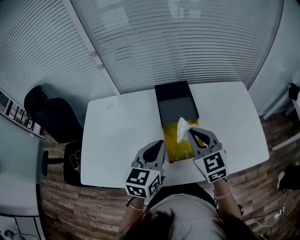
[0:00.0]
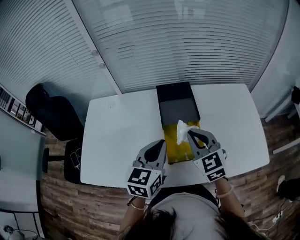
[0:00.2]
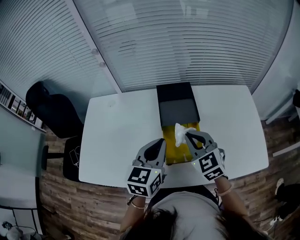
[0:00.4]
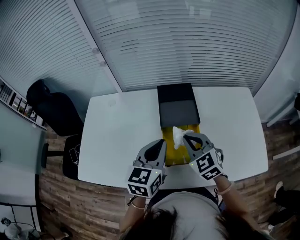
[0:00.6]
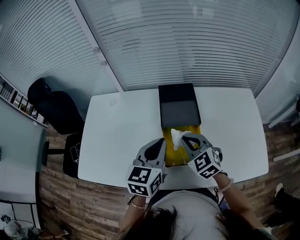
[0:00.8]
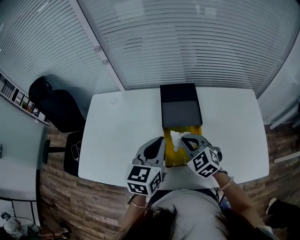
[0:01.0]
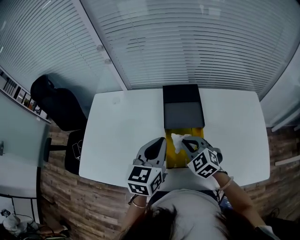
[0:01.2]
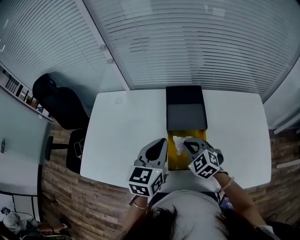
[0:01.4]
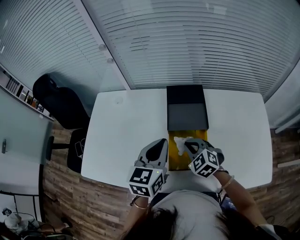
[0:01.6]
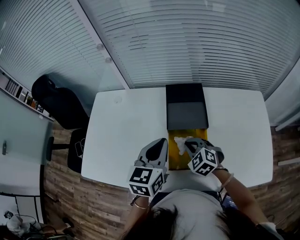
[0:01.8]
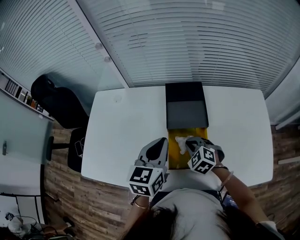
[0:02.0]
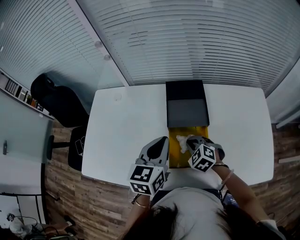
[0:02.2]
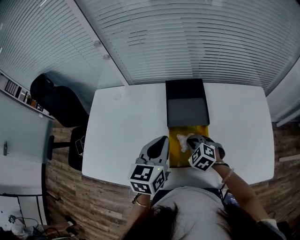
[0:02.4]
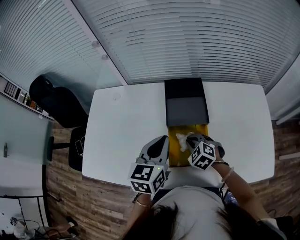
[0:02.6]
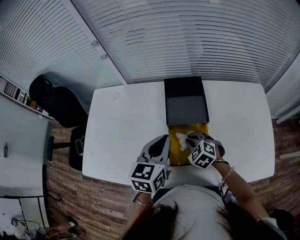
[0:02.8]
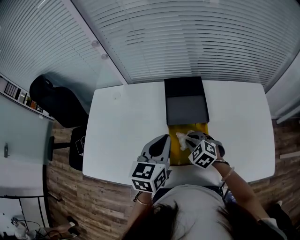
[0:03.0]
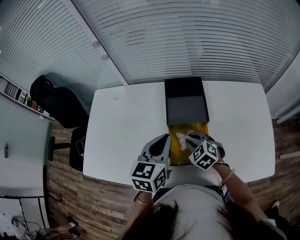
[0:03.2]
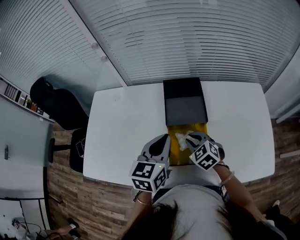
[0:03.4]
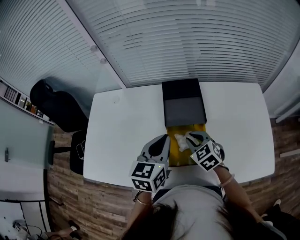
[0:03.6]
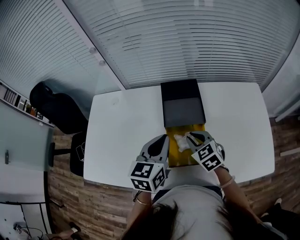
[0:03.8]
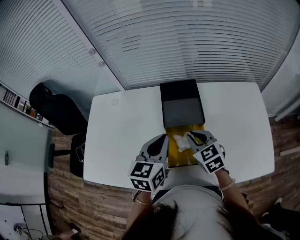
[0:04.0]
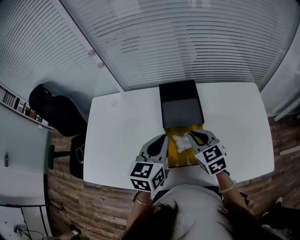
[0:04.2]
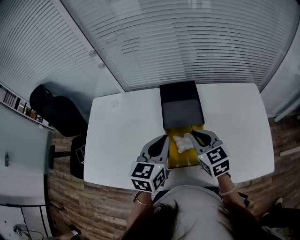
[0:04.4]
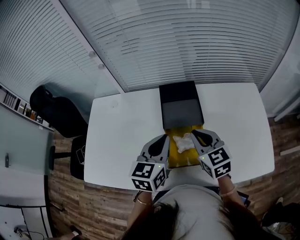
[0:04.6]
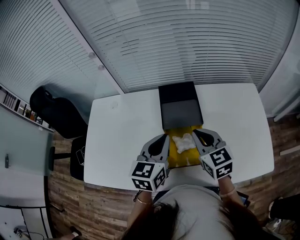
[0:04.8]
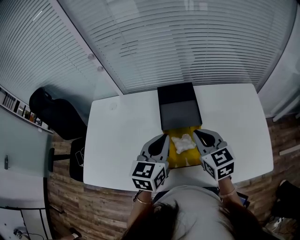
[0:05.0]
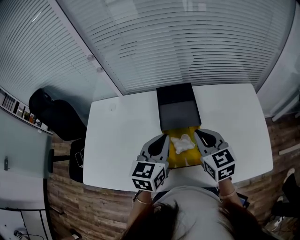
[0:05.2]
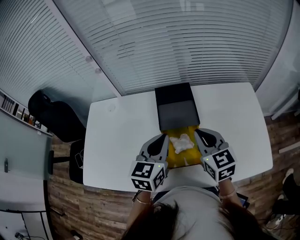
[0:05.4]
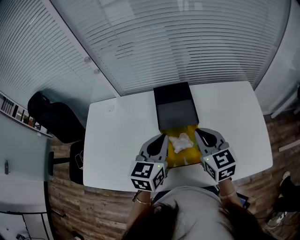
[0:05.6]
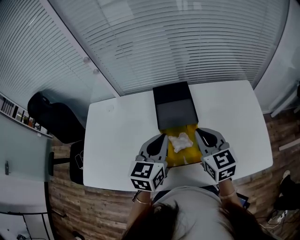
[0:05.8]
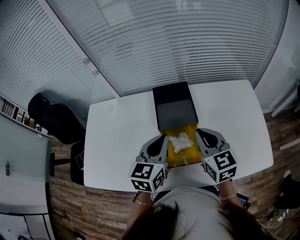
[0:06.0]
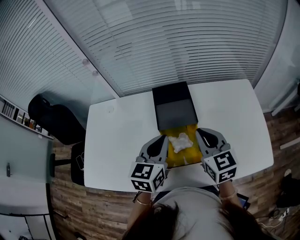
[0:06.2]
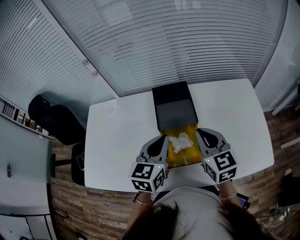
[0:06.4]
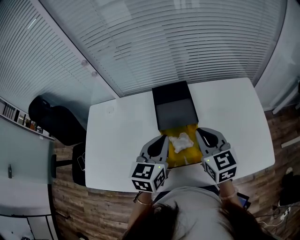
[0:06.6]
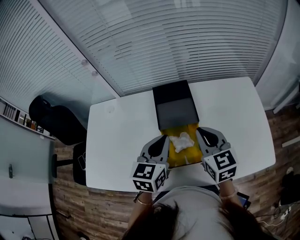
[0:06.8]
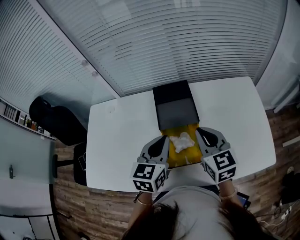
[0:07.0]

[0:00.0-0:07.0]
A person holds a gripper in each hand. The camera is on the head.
0:00.0 to 0:01.4: The left gripper shifts about 5 cm forward, while the right gripper is displaced downward by approximately 15 cm, and rotates roughly 30 degrees.
0:01.4 to 0:02.8: The right gripper shifts some 5 cm downward.
0:02.8 to 0:04.2: The right gripper is displaced upward by roughly 10 cm, and rotates some 40 degrees.
0:04.2 to 0:05.6: The right gripper heads upward, covering about 5 cm.
0:05.6 to 0:07.0: Both grippers stay put.

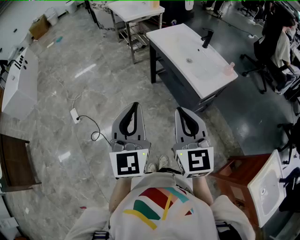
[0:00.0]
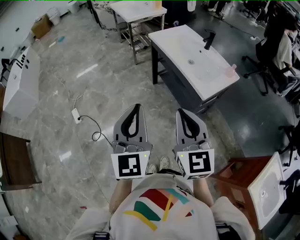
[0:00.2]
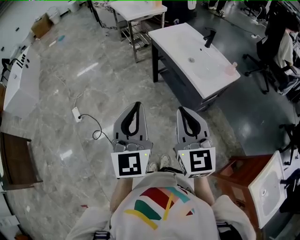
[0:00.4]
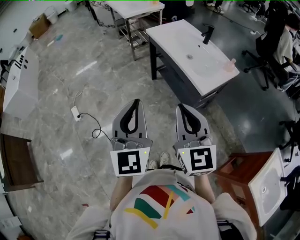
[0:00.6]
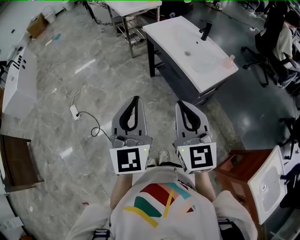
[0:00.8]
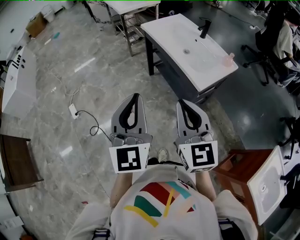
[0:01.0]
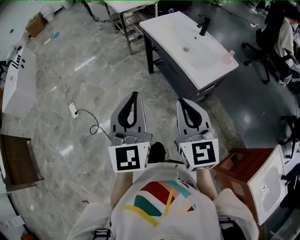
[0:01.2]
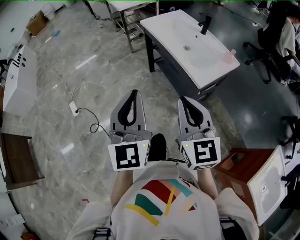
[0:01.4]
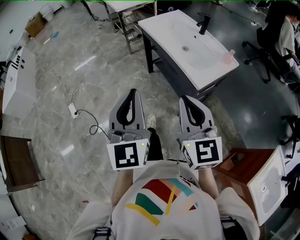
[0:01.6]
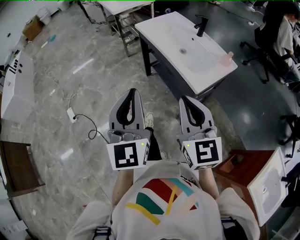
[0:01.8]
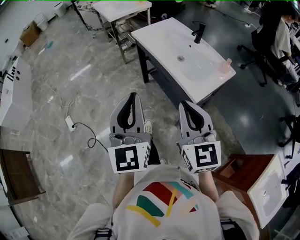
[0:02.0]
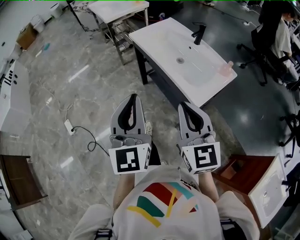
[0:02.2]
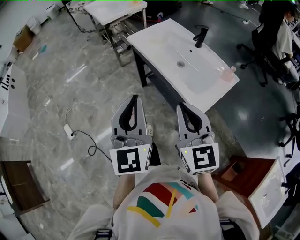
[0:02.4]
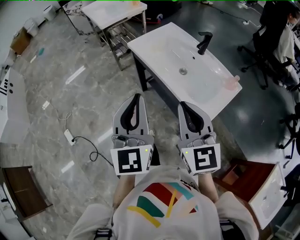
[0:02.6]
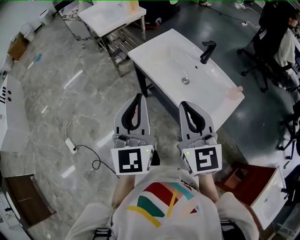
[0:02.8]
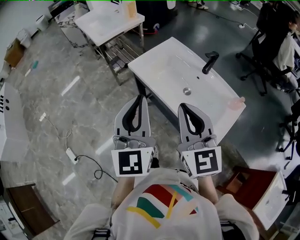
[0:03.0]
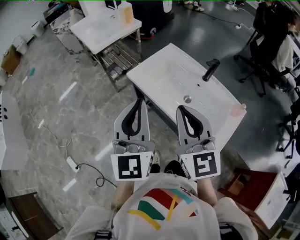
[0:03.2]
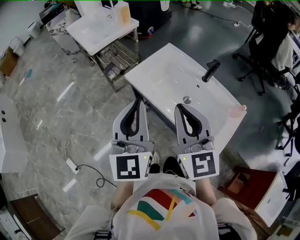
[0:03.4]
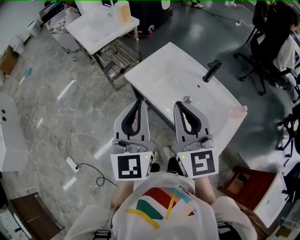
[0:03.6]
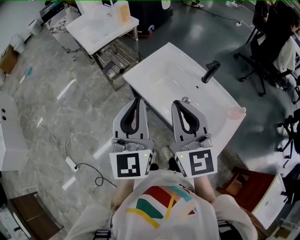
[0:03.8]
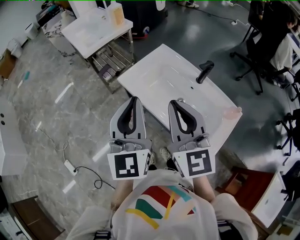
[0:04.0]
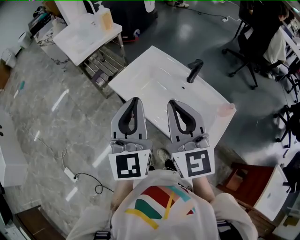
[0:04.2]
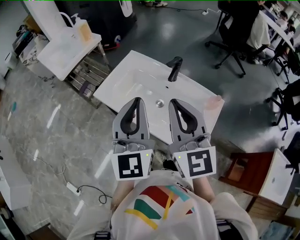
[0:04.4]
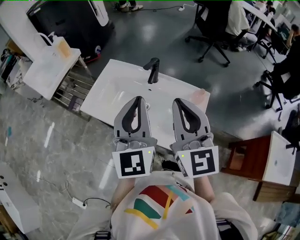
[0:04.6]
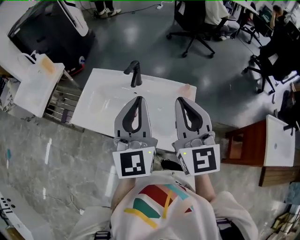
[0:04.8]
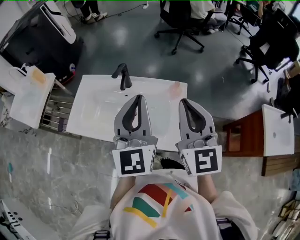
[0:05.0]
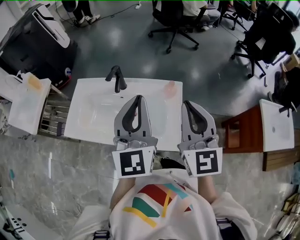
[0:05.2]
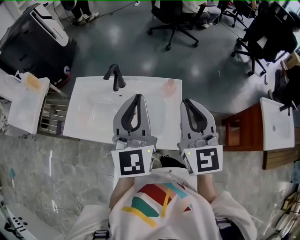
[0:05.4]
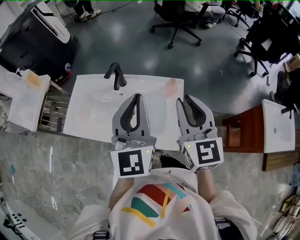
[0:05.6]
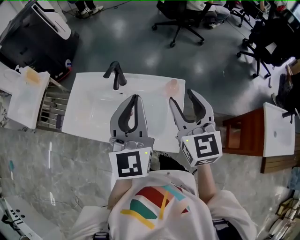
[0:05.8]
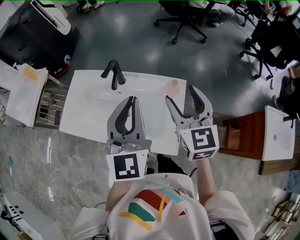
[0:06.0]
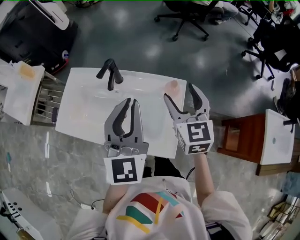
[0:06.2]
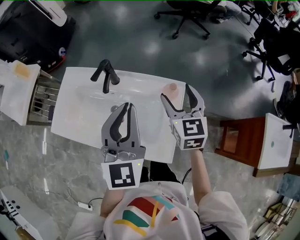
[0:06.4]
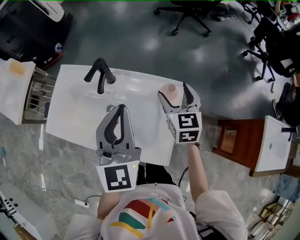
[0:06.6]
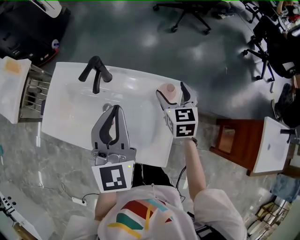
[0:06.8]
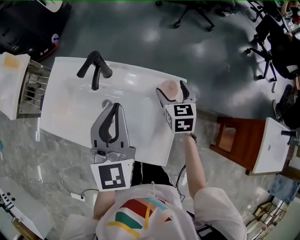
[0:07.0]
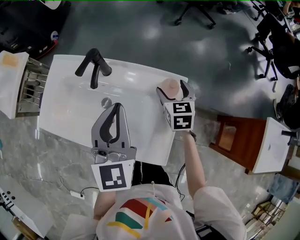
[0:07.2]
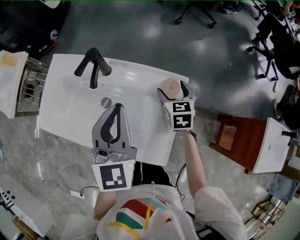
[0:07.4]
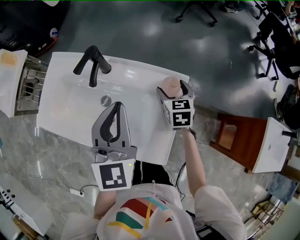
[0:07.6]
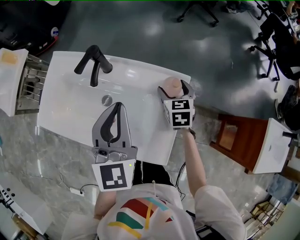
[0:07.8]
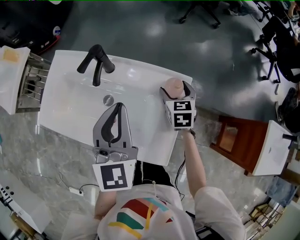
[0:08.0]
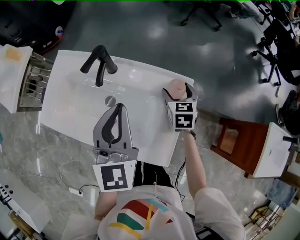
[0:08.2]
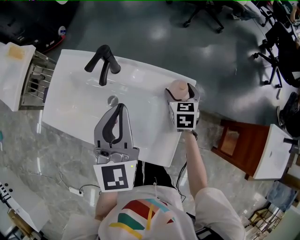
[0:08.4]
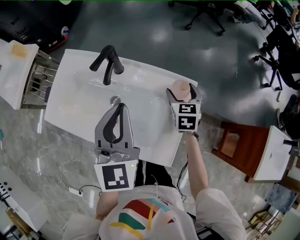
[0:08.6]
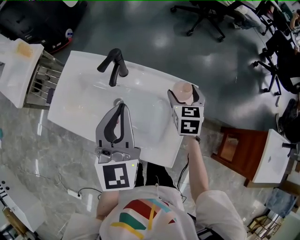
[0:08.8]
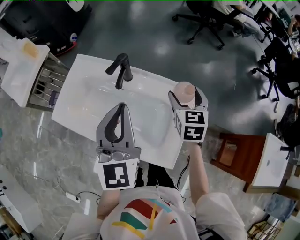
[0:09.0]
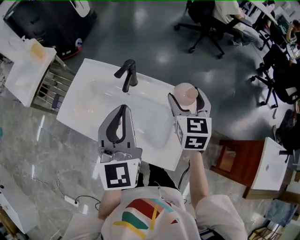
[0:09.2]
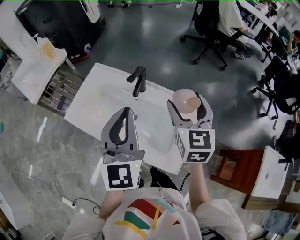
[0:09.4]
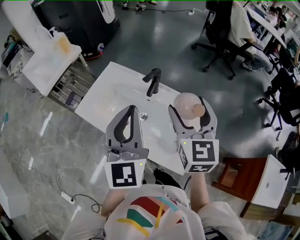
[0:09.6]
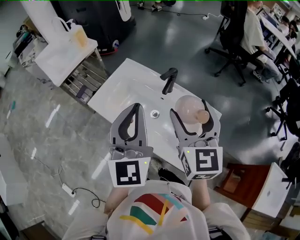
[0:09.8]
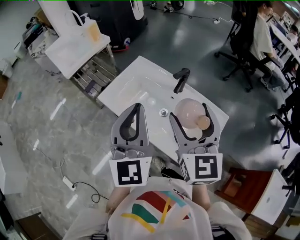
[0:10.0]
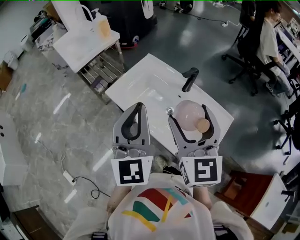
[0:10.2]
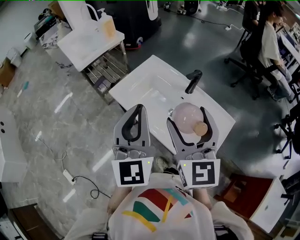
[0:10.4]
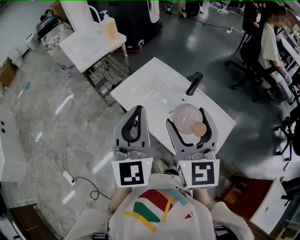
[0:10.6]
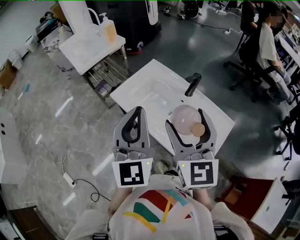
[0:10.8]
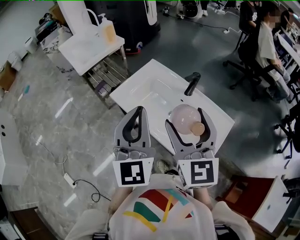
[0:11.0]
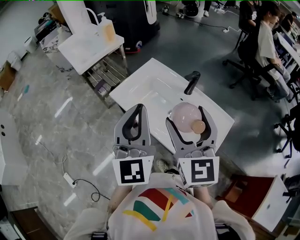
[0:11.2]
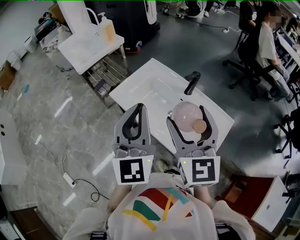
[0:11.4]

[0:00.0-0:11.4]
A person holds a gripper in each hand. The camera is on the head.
0:00.0 to 0:01.4: The two grippers go some 5 cm to the right.
0:01.4 to 0:02.8: The grippers both shift forward by about 30 cm.
0:02.8 to 0:04.2: Both grippers move forward, approximately 15 cm.
0:04.2 to 0:05.6: The right gripper shifts by some 30 cm, and swivels approximately 40 degrees. Meanwhile the left gripper changes place by approximately 25 cm, and swivels roughly 30 degrees.
0:05.6 to 0:07.2: The right gripper moves downward and forward, about 35 cm, tips its fingers downward by roughly 30 degrees, and opens its fingers; the left gripper moves downward and forward, some 15 cm.
0:07.2 to 0:08.6: The grippers move only a little.
0:08.6 to 0:10.0: The right gripper is displaced upward, to the left and backward by about 40 cm, and tips its fingers upward by about 30 degrees. The left gripper travels to the left, upward and backward by some 25 cm, and swivels about 20 degrees.
0:10.0 to 0:11.4: The left gripper ends up some 5 cm from where it was, while the right gripper shifts some 5 cm to the left.

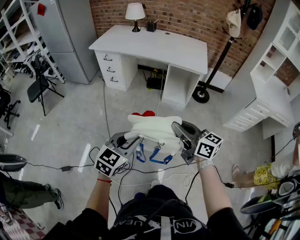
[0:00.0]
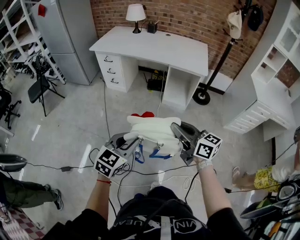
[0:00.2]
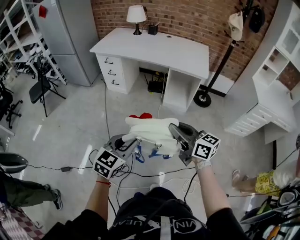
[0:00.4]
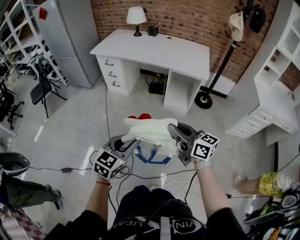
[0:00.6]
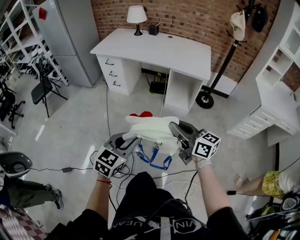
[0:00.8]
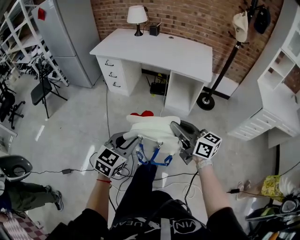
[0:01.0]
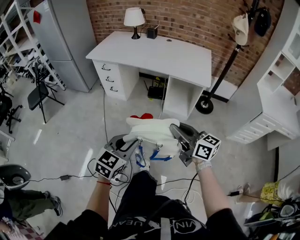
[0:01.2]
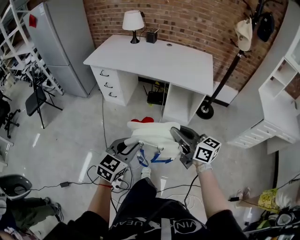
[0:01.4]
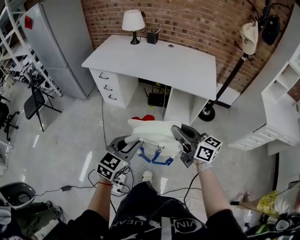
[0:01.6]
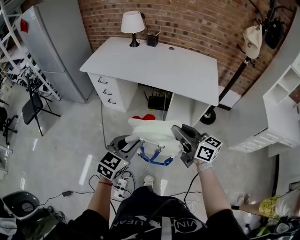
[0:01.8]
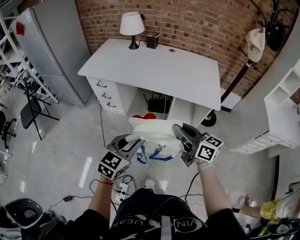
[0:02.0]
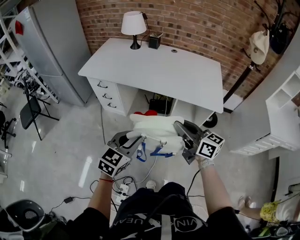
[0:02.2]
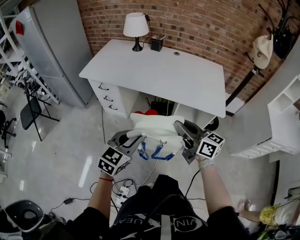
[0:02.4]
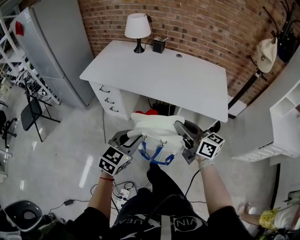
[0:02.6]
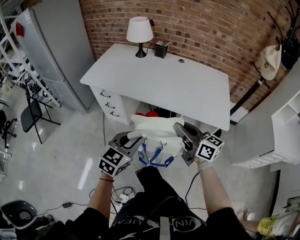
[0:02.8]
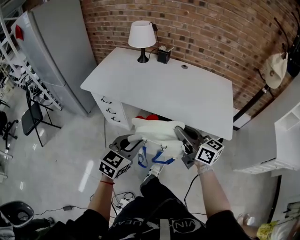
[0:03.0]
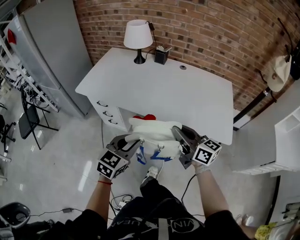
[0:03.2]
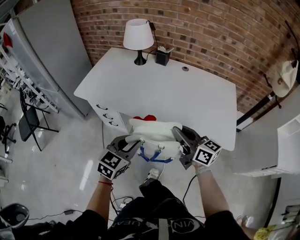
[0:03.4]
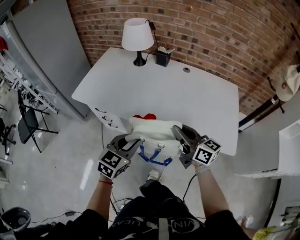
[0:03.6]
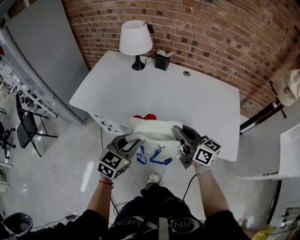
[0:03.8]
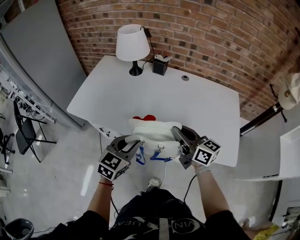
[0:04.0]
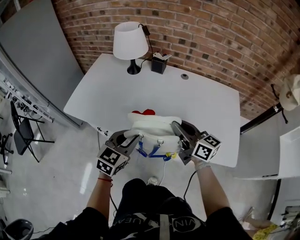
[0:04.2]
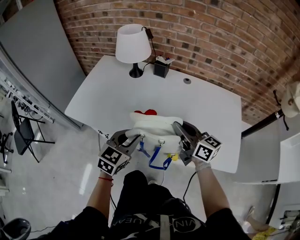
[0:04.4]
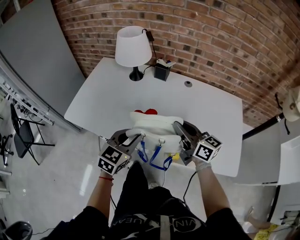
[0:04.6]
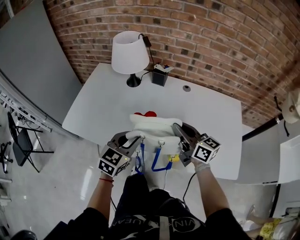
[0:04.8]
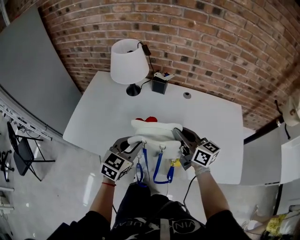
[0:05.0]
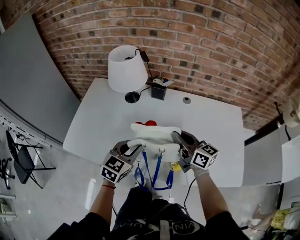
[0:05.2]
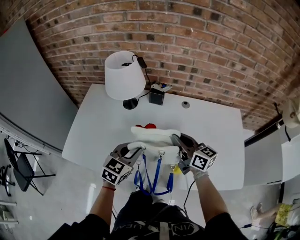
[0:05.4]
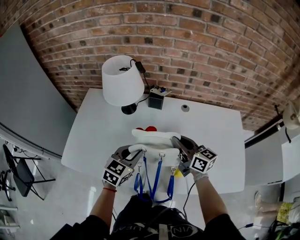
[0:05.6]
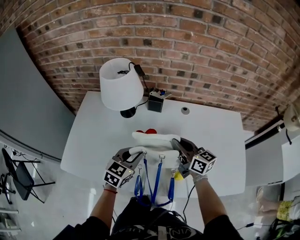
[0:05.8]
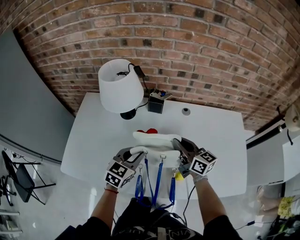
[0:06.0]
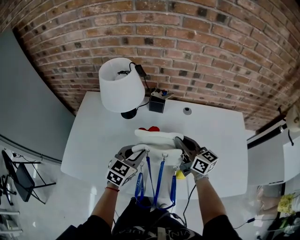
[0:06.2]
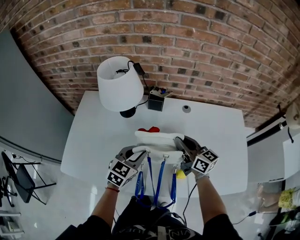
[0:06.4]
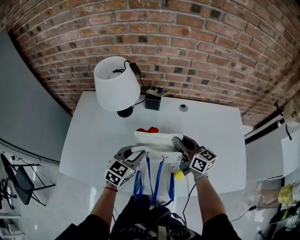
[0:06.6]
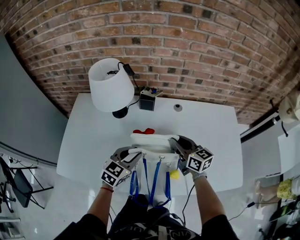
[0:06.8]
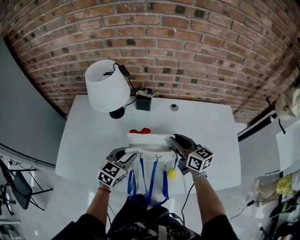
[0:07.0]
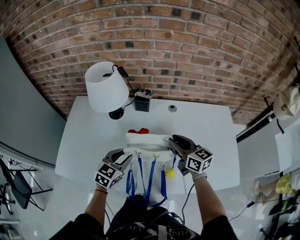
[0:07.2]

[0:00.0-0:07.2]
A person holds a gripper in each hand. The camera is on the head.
0:00.0 to 0:01.4: The grippers both shift forward by roughly 20 cm.
0:01.4 to 0:02.8: The two grippers go roughly 30 cm forward.
0:02.8 to 0:04.4: The grippers both shift forward by some 30 cm.
0:04.4 to 0:05.8: The two grippers go approximately 20 cm forward.
0:05.8 to 0:07.2: The grippers move only a little.
